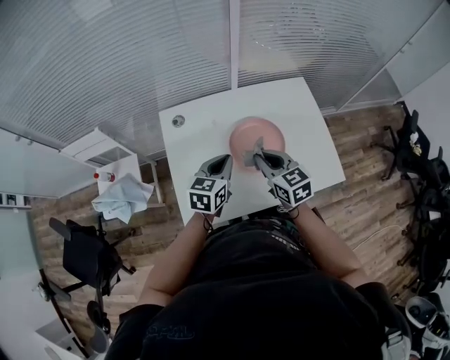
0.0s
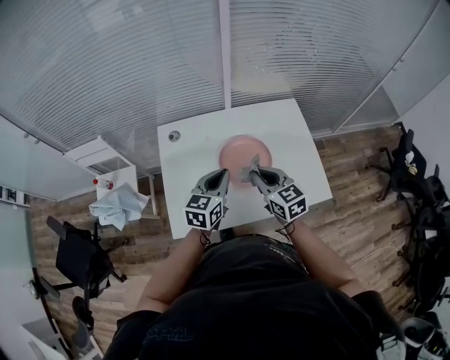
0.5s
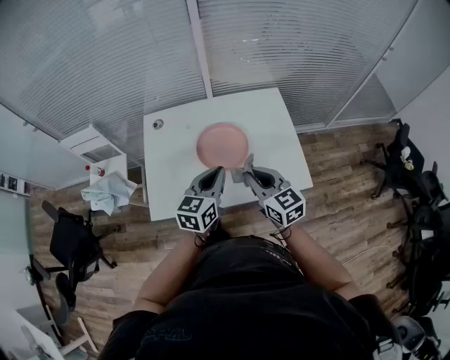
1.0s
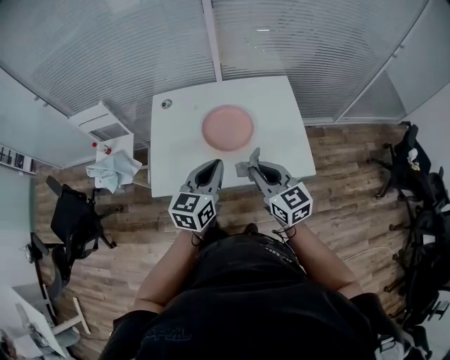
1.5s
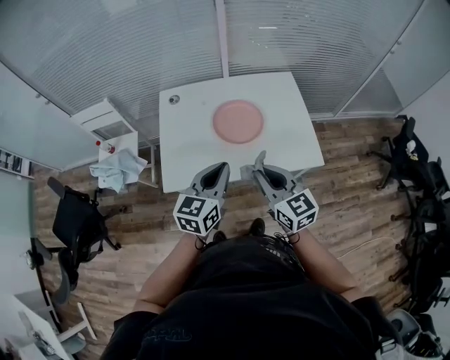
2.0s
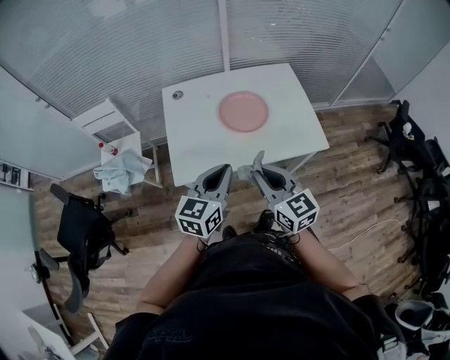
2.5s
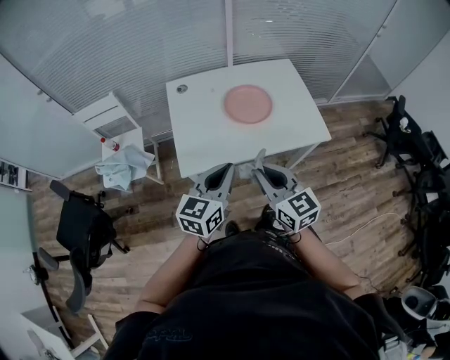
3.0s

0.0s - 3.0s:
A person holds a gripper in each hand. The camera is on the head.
0.0s - 1.5s: The left gripper goes approximately 20 cm backward, to the right and upward, while the right gripper moves backward and to the right, about 20 cm.
1.5s - 3.0s: The right gripper is displaced to the left and backward by some 20 cm. The left gripper is displaced backward and to the left by approximately 20 cm.

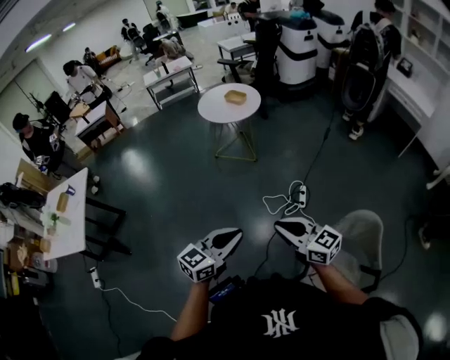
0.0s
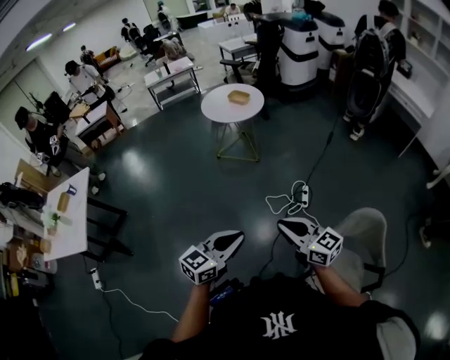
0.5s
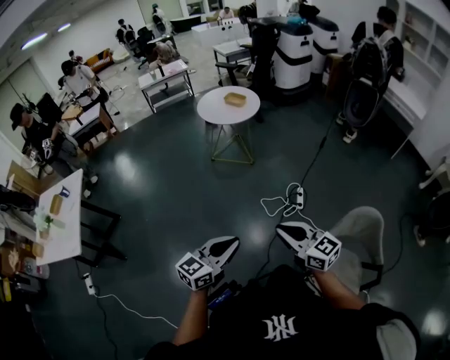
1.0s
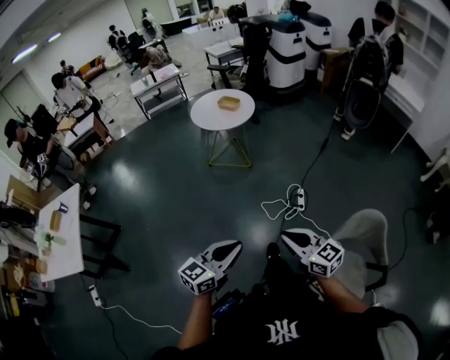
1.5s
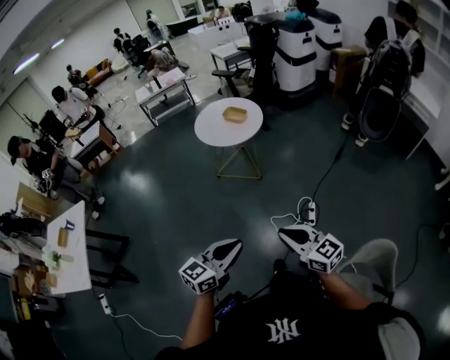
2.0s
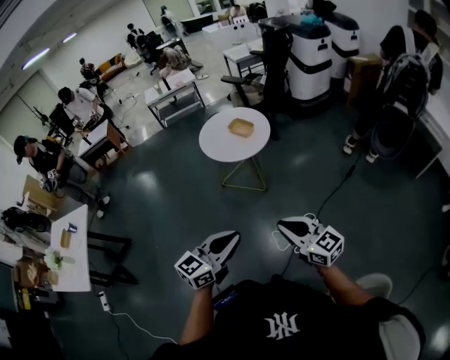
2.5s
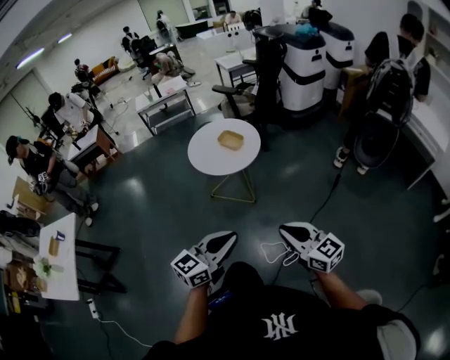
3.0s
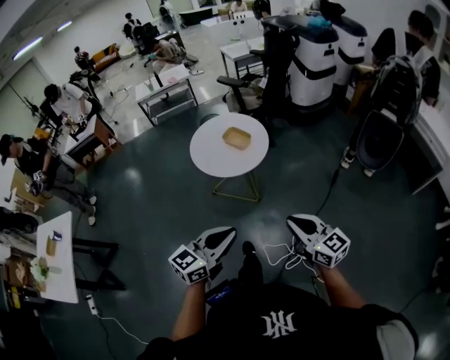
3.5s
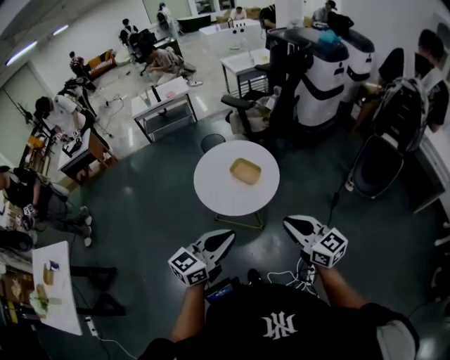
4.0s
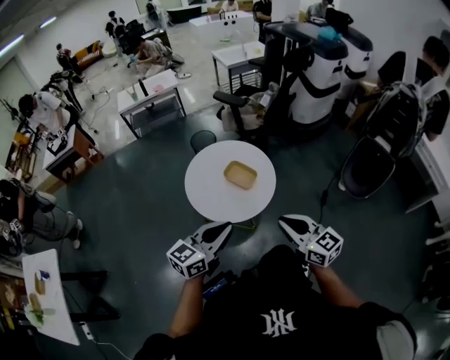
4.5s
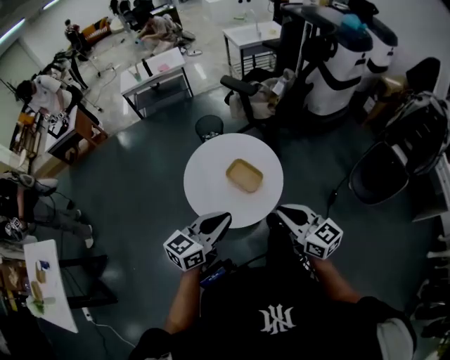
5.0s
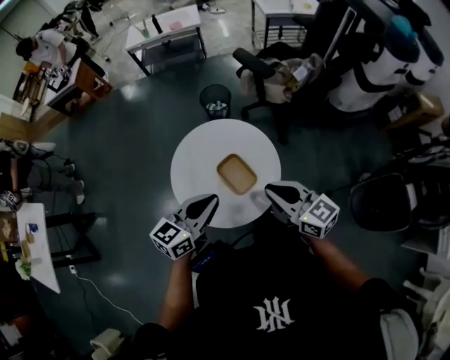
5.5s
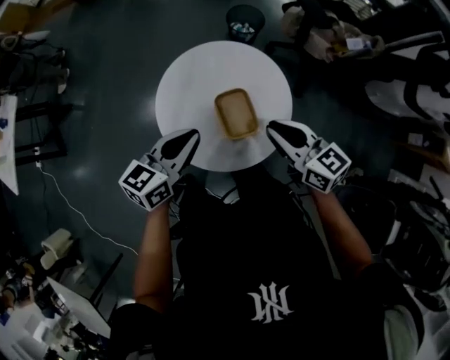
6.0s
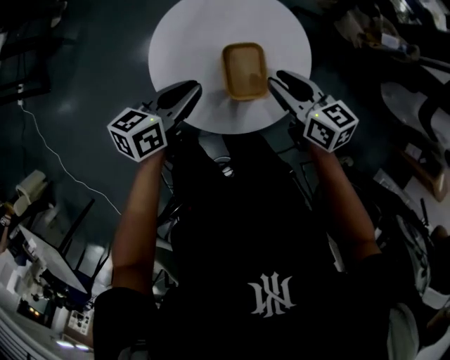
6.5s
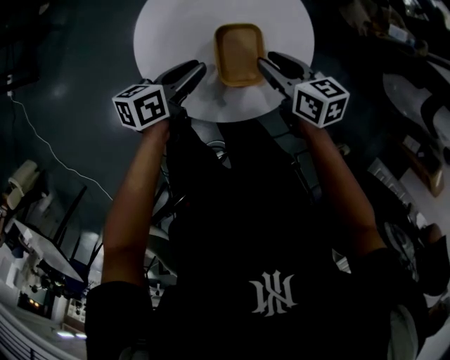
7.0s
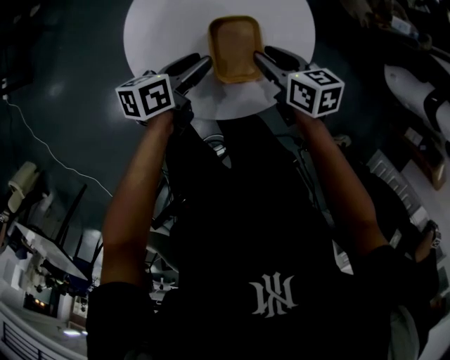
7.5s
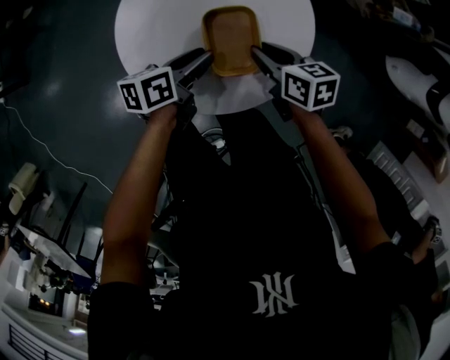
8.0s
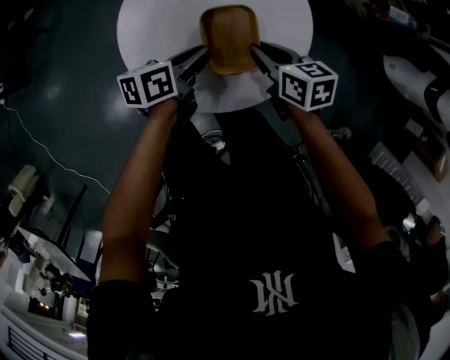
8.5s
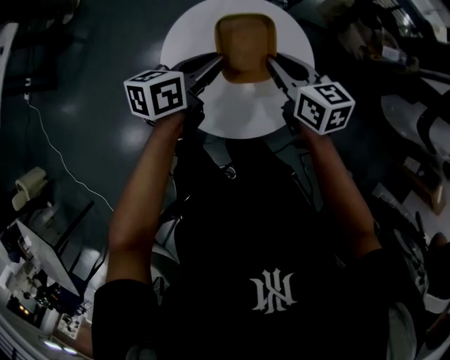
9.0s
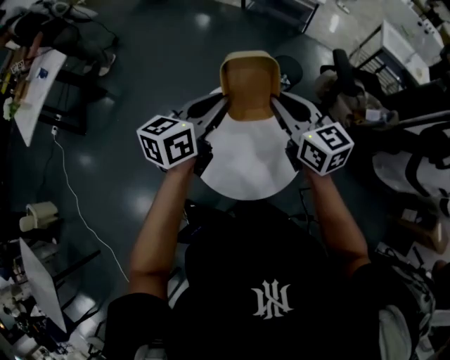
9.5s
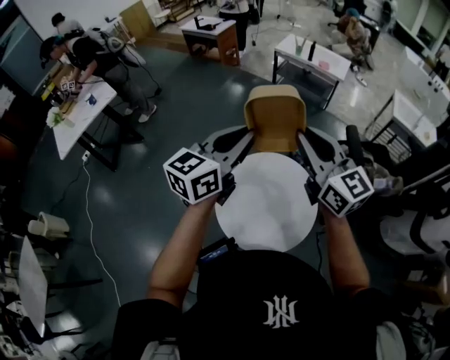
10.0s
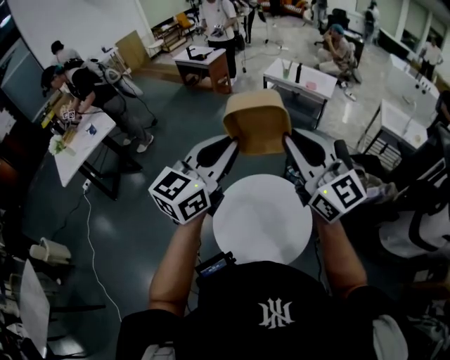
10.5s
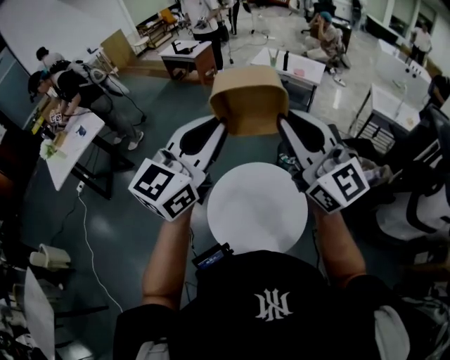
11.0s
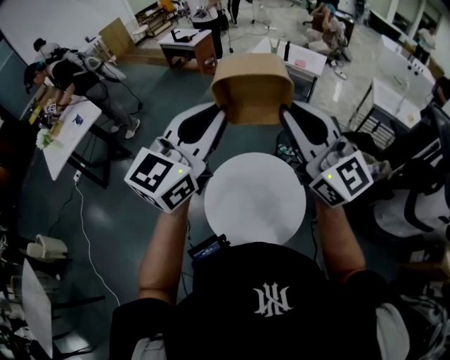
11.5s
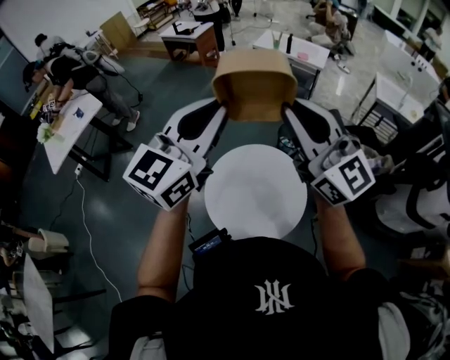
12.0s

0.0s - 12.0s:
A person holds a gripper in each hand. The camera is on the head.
0.0s - 2.0s: The grippers both shift forward by some 15 cm.
2.0s - 4.0s: The pair of grippers is taken forward, about 50 cm.
4.0s - 6.0s: The right gripper changes place by about 40 cm, and rotates some 40 degrees; the left gripper moves approximately 35 cm, and swivels approximately 50 degrees.
6.0s - 8.0s: Both grippers move downward, approximately 20 cm. The right gripper swivels approximately 30 degrees; the left gripper swivels approximately 40 degrees, and opens up.
8.0s - 10.0s: Both grippers travel together upward, about 50 cm. The left gripper turns by roughly 60 degrees, and closes, while the right gripper tilts its fingers approximately 50 degrees upward.
10.0s - 12.0s: The left gripper travels upward by some 10 cm, and changes its angle by about 20 degrees, while the right gripper heads upward and backward, covering some 10 cm.

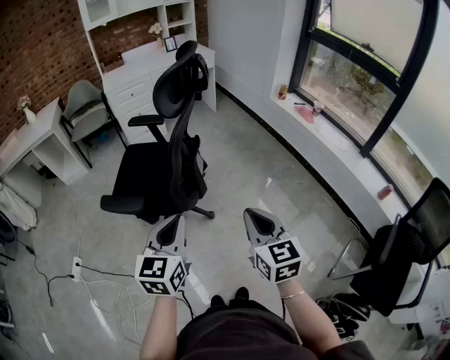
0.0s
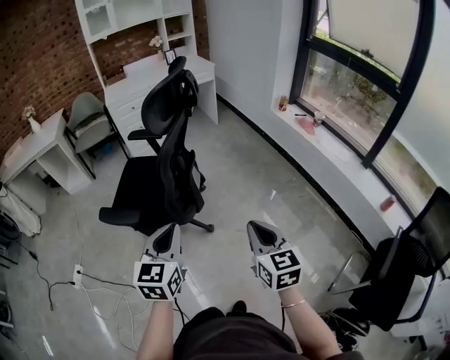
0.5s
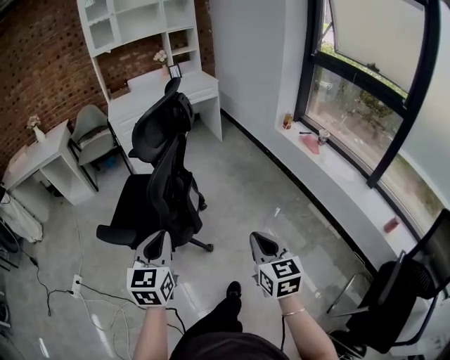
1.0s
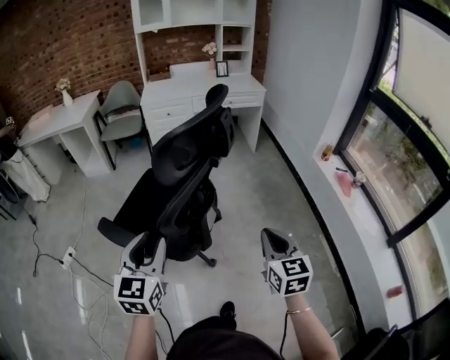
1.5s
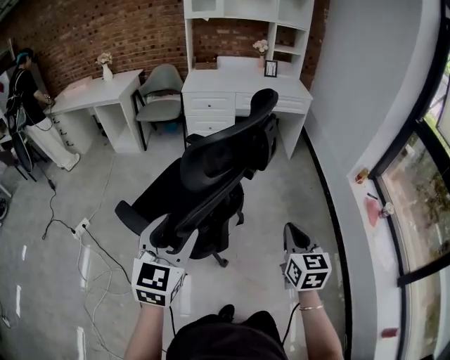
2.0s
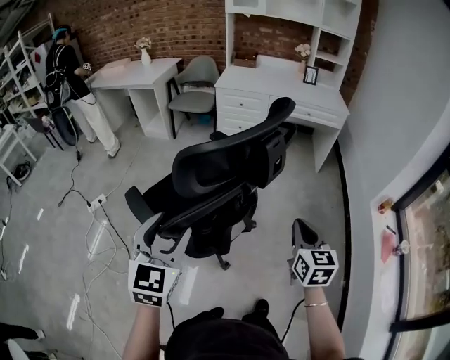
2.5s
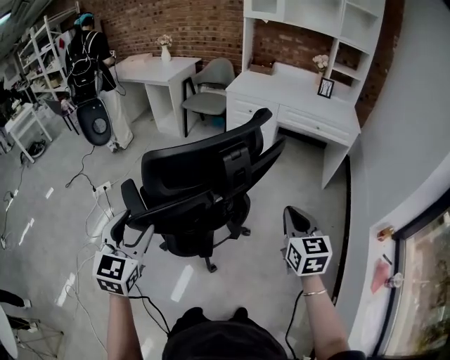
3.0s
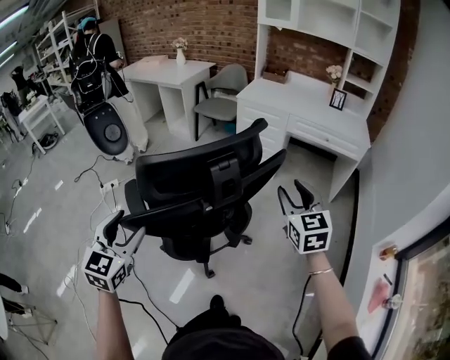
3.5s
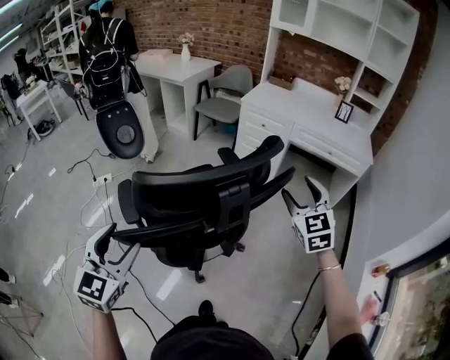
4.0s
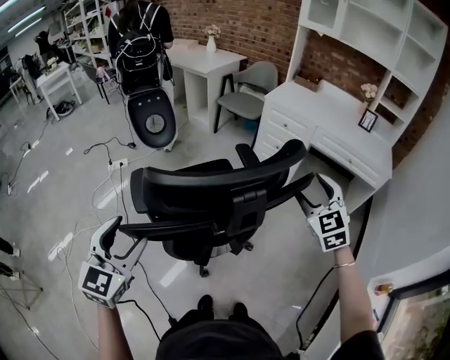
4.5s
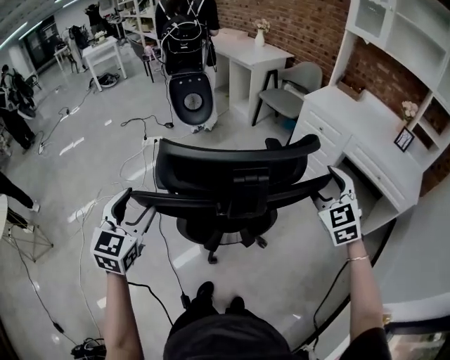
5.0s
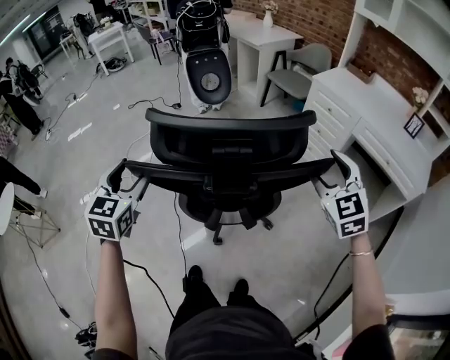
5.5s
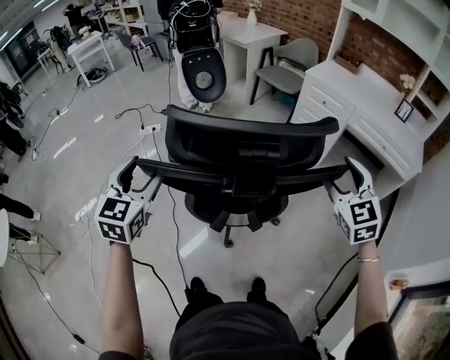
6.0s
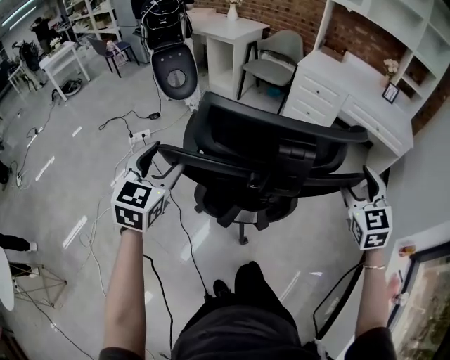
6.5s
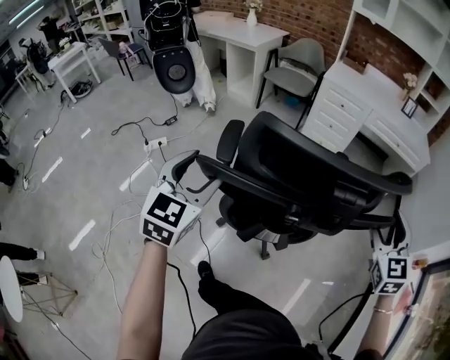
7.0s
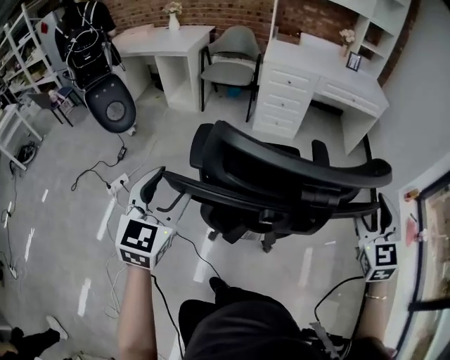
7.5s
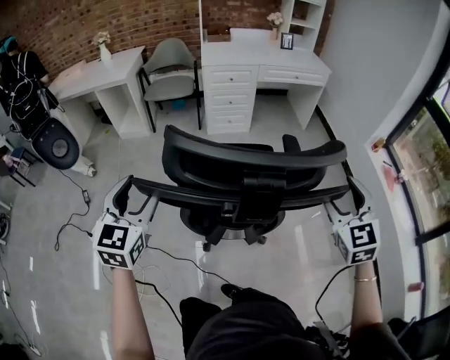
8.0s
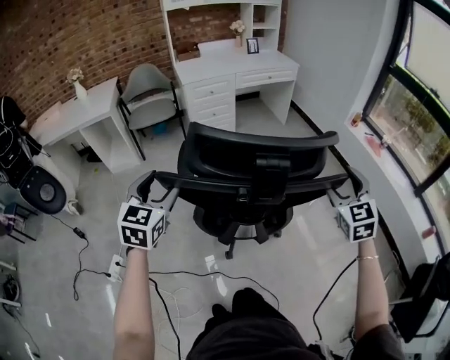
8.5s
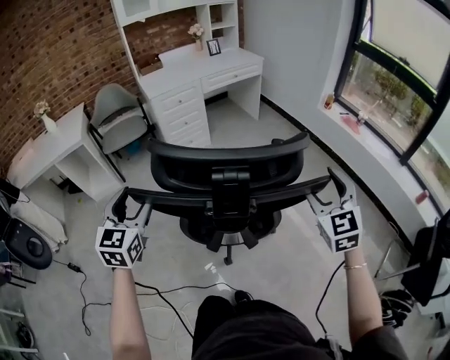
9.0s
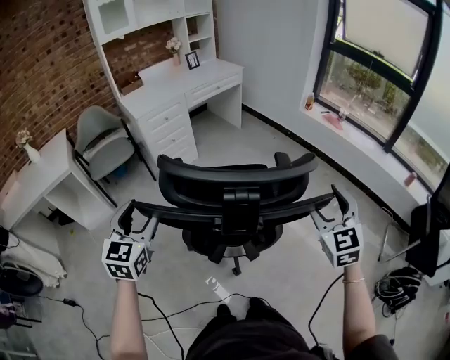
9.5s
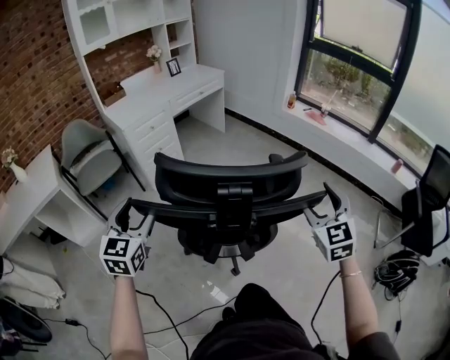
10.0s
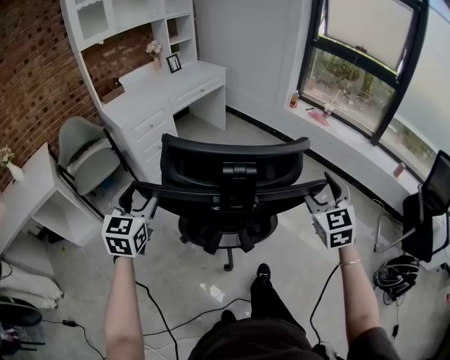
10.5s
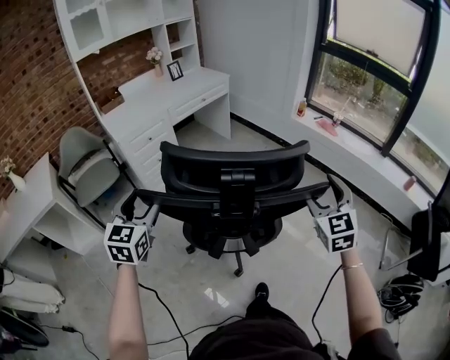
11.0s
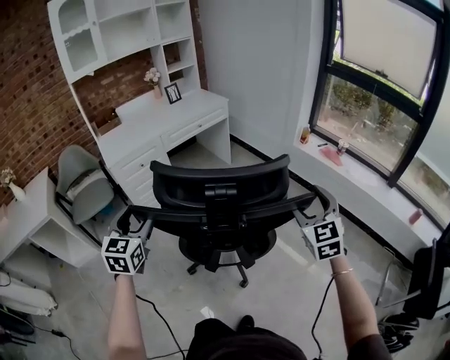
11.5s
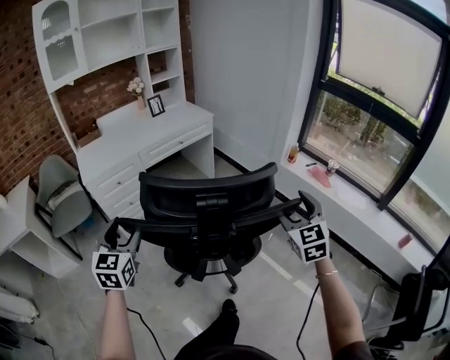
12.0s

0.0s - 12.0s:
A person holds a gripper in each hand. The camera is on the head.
0.0s - 2.0s: The right gripper travels forward by about 35 cm, while the left gripper moves forward, about 25 cm, rotates about 30 degrees, and opens up.
2.0s - 4.0s: The left gripper swivels roughly 30 degrees. Meanwhile the right gripper shifts by roughly 35 cm, turns by approximately 50 degrees, and opens.
4.0s - 6.0s: The right gripper changes place by about 10 cm; the left gripper changes place by about 10 cm.
6.0s - 8.0s: The right gripper shifts by some 30 cm, and turns by roughly 60 degrees. Meanwhile the left gripper changes place by approximately 35 cm, and turns by roughly 50 degrees.
8.0s - 10.0s: The right gripper ends up about 20 cm from where it was, and changes its angle by some 40 degrees, while the left gripper shifts by approximately 25 cm, and changes its angle by some 40 degrees.
10.0s - 12.0s: Both grippers are carried forward and to the right, roughly 50 cm.
